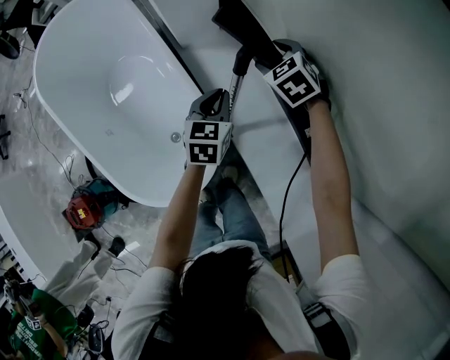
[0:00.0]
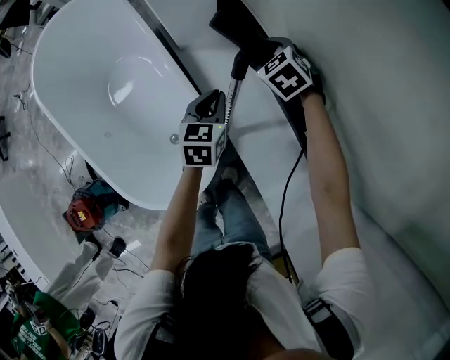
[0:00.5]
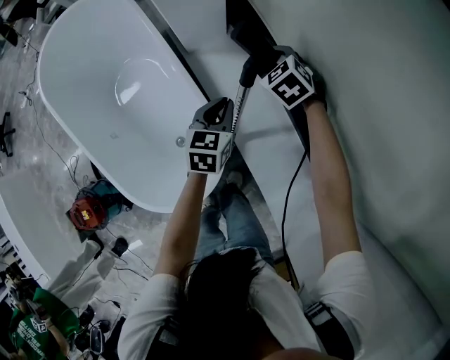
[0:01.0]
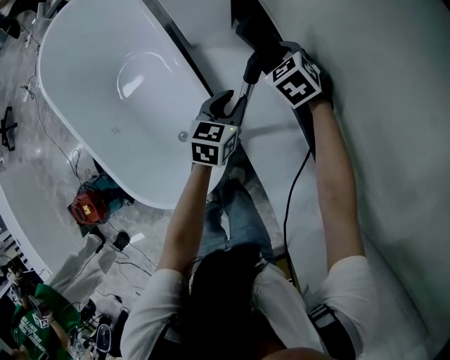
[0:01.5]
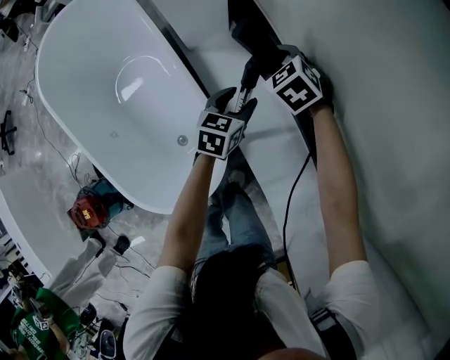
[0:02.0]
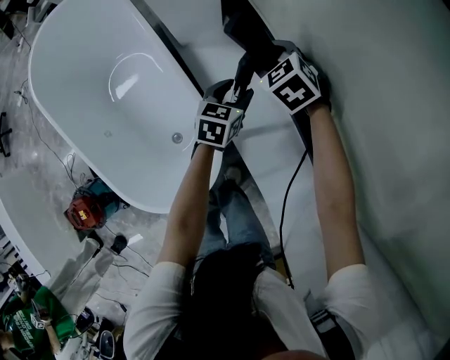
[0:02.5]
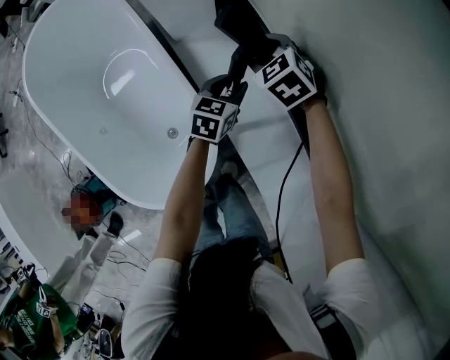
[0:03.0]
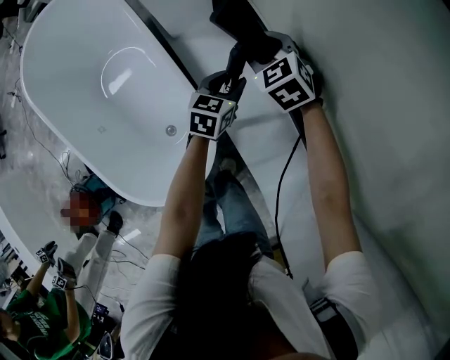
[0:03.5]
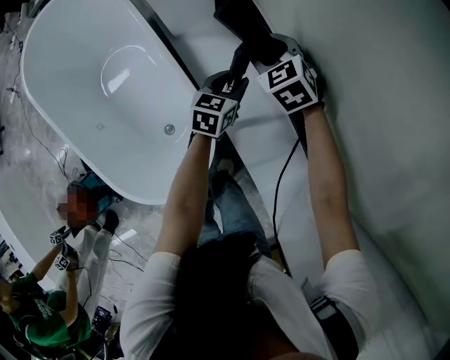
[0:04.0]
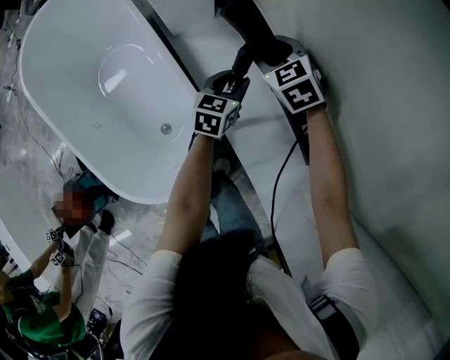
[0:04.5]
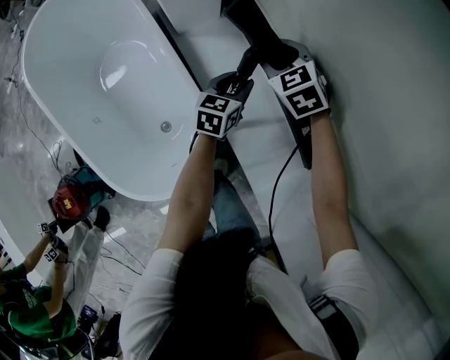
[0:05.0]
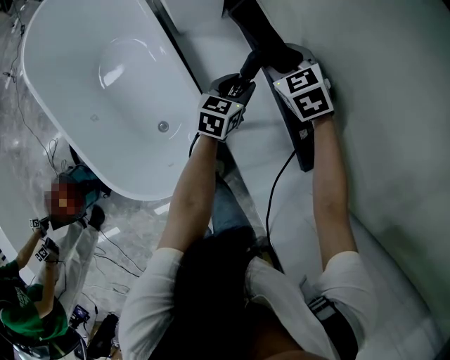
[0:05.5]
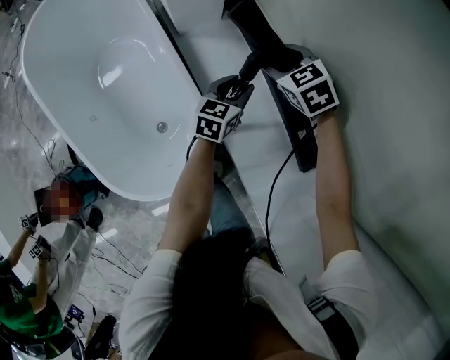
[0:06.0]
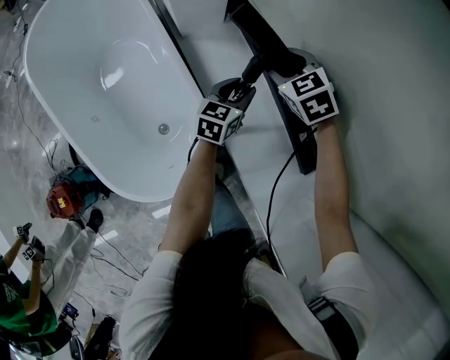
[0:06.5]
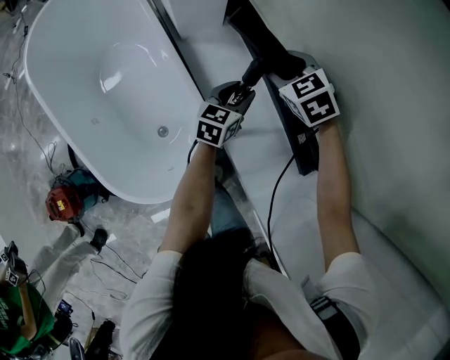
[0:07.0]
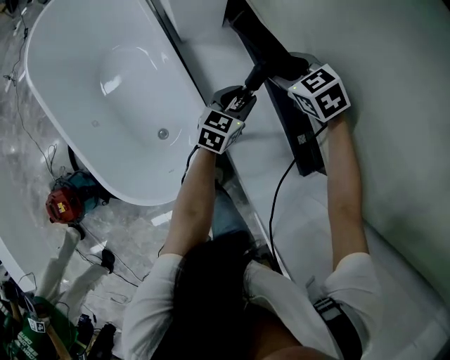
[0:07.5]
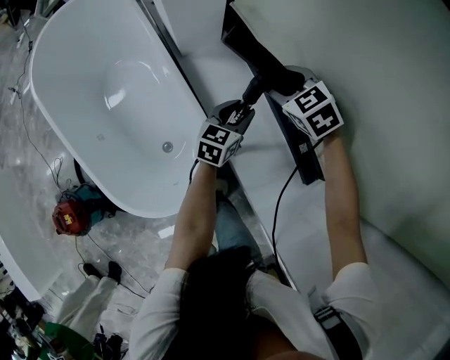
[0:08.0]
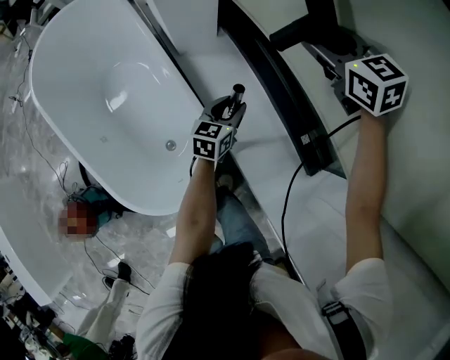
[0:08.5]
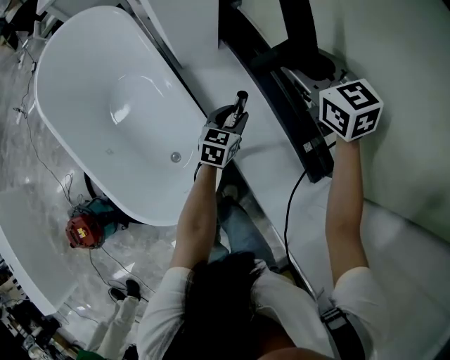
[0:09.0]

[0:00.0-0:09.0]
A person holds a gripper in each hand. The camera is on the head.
0:00.0 to 0:02.0: The right gripper shifts by approximately 5 cm; the left gripper goes about 5 cm downward, and opens up.
0:02.0 to 0:07.0: There are only small adjustments of the grippers.
0:07.0 to 0:09.0: The right gripper heads upward, covering approximately 15 cm, and swivels some 30 degrees.

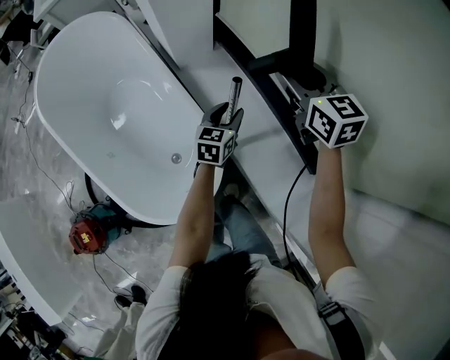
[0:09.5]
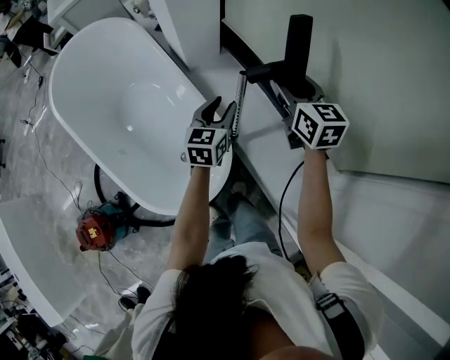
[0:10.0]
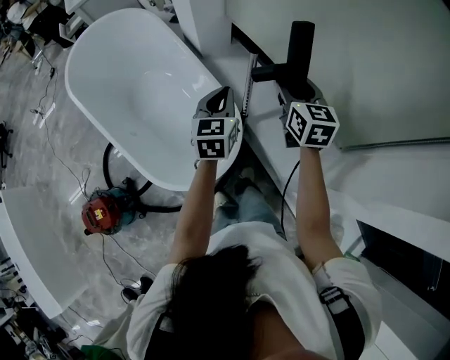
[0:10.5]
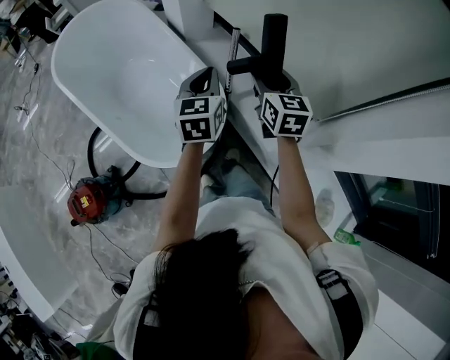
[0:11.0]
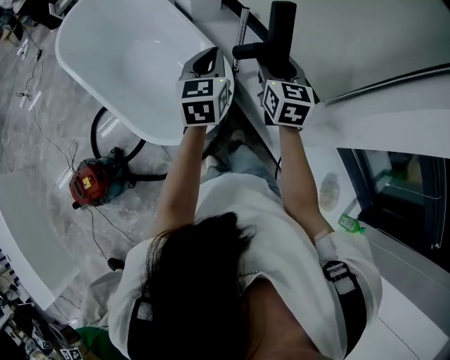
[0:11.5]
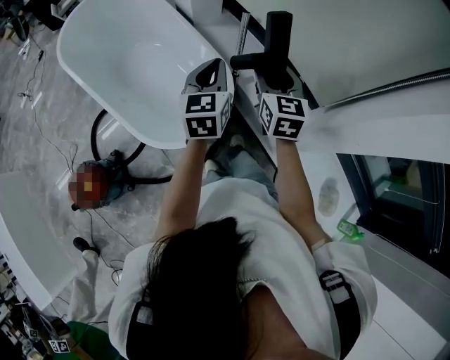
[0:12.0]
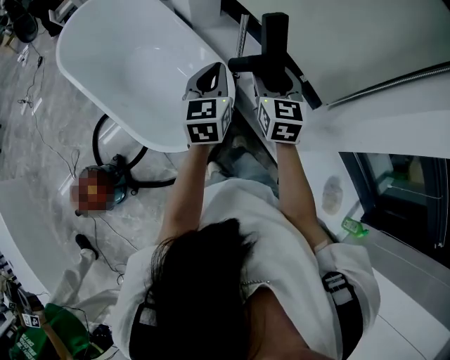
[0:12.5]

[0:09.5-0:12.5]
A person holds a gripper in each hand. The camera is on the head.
0:09.5 to 0:11.0: The left gripper travels backward, upward and to the left by some 35 cm, and closes its fingers, while the right gripper heads backward, covering about 30 cm.
0:11.0 to 0:12.5: Both grippers travel together backward, about 5 cm.

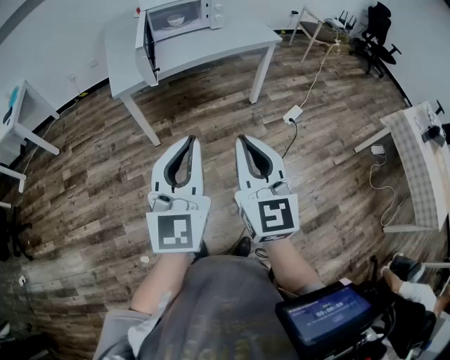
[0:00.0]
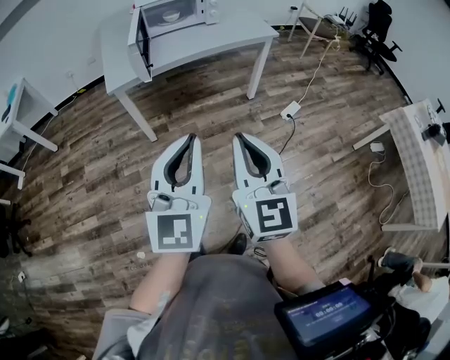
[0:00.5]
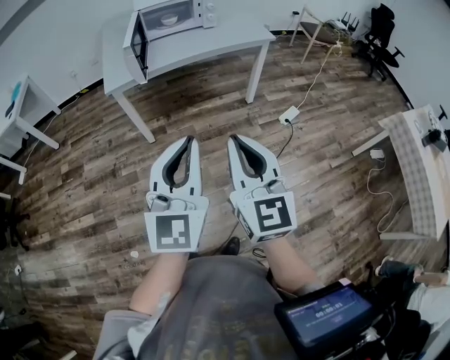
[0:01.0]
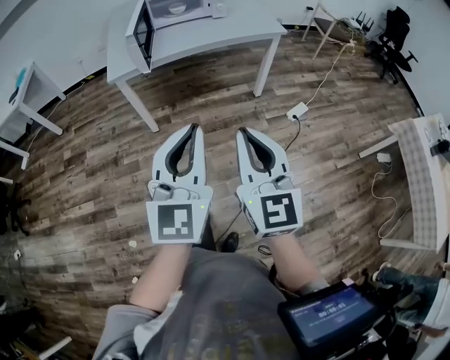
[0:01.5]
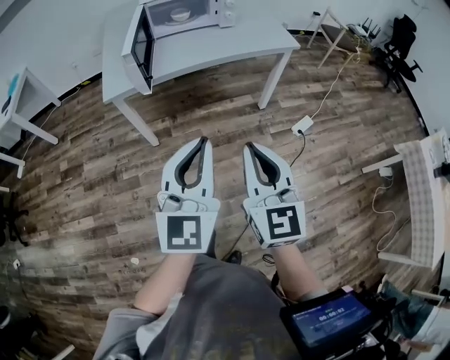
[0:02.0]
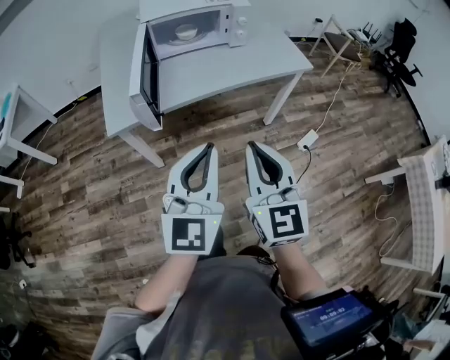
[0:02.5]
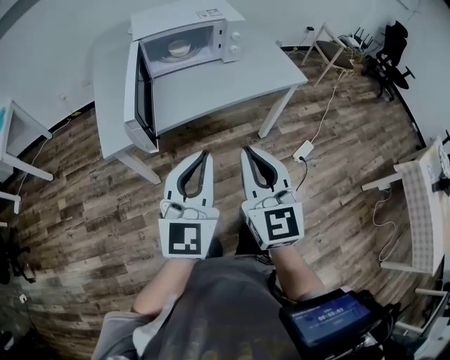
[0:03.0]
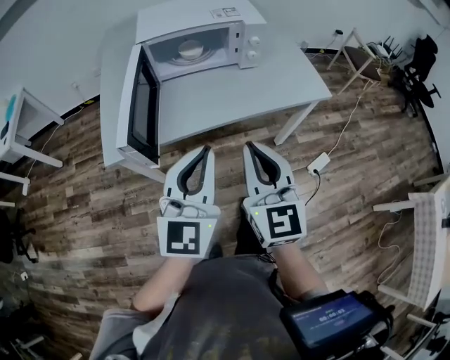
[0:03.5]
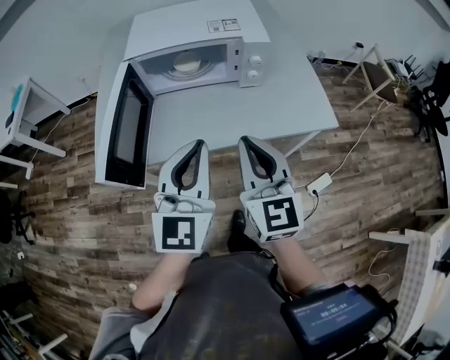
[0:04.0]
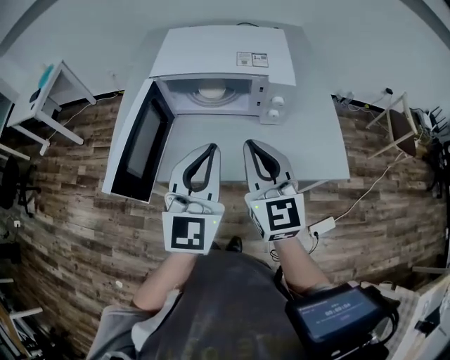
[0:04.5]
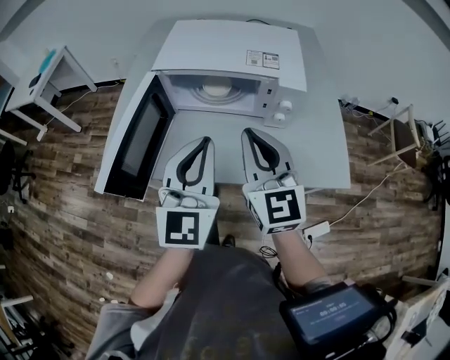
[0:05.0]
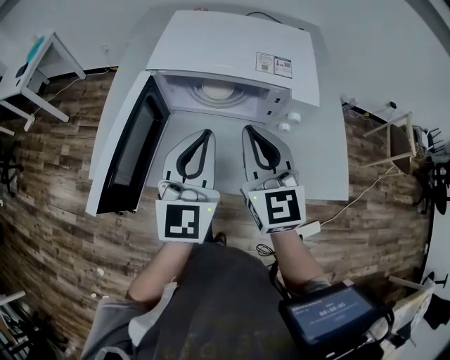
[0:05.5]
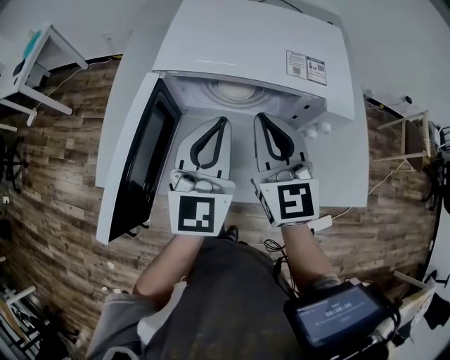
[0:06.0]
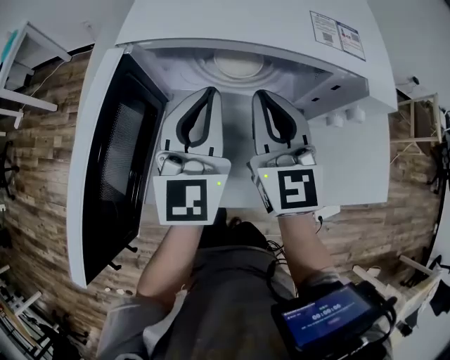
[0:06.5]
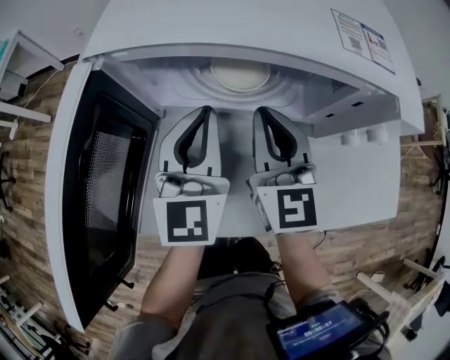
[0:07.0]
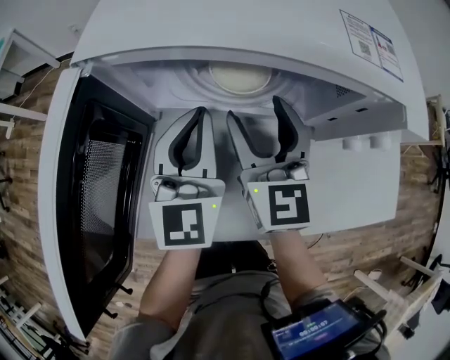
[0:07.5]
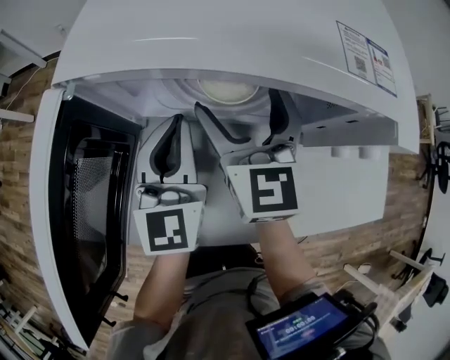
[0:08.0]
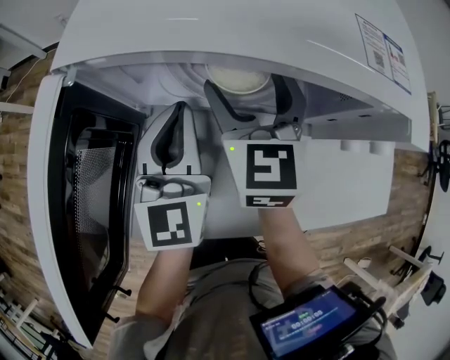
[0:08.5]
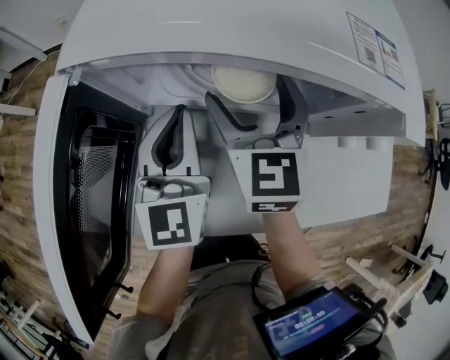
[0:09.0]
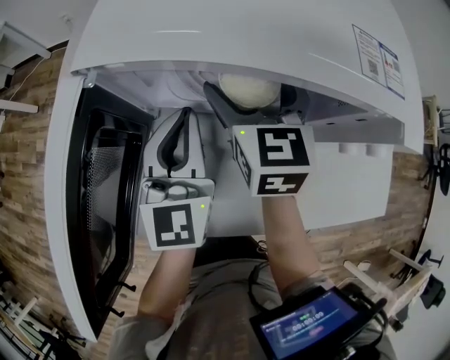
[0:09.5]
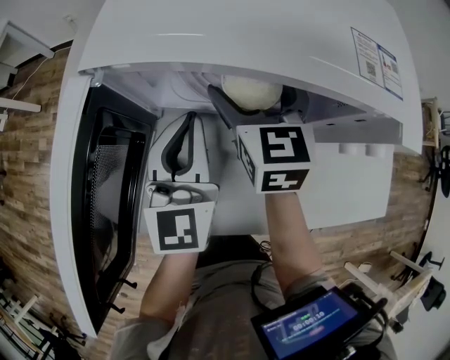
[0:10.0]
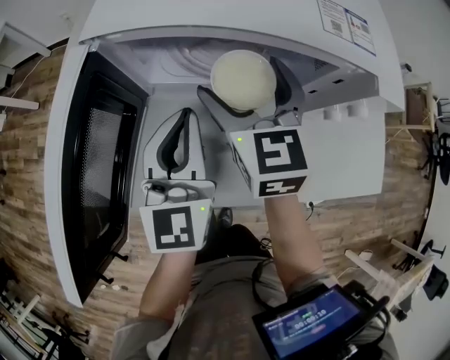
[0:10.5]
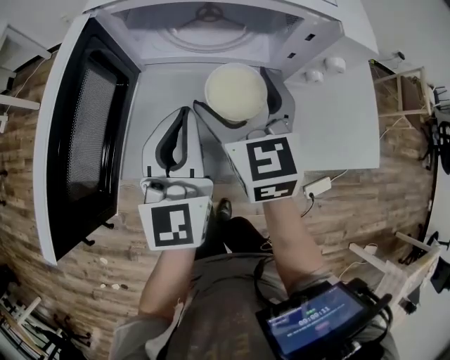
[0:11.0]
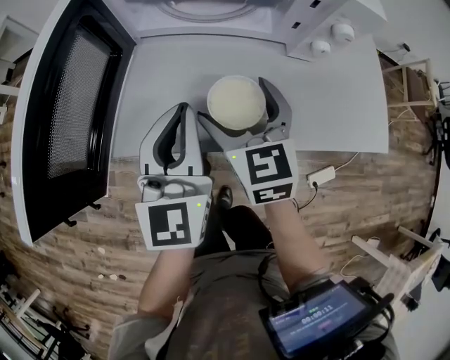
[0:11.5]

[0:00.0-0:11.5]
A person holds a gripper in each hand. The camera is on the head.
0:00.0 to 0:02.0: Both grippers travel together forward and to the right, approximately 15 cm.
0:02.0 to 0:04.0: The grippers both shift forward by some 40 cm.
0:04.0 to 0:06.0: Both grippers move forward, about 25 cm.
0:06.0 to 0:07.5: Both grippers move downward and forward, roughly 15 cm. The right gripper opens up.
0:07.5 to 0:09.5: The right gripper is displaced forward by roughly 5 cm, and opens.
0:09.5 to 0:11.5: Both grippers travel together backward, about 20 cm.

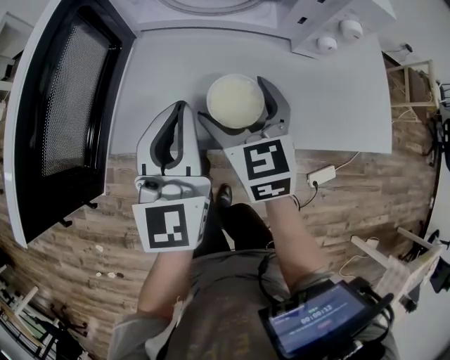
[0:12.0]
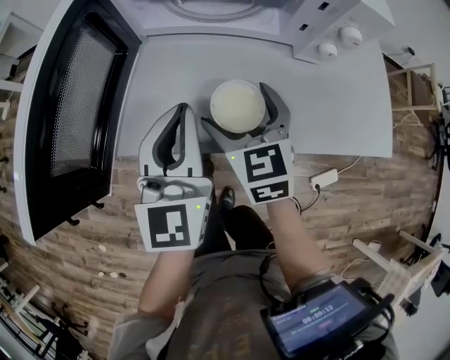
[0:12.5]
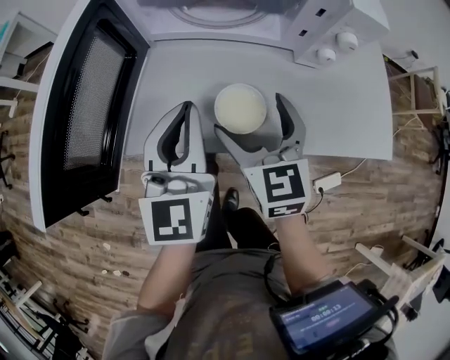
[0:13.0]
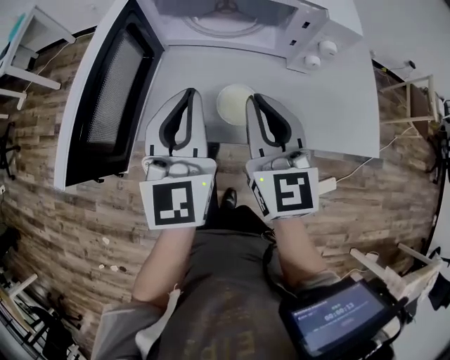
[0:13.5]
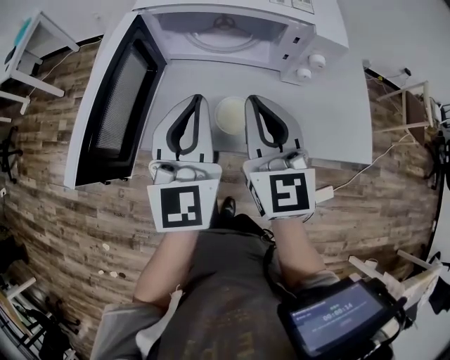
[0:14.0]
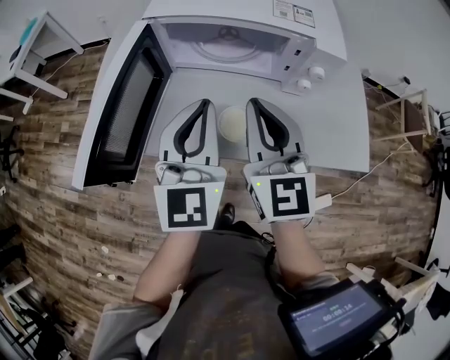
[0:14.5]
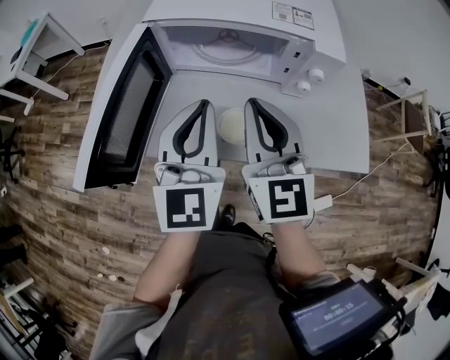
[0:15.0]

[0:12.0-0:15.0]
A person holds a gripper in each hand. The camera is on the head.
0:12.0 to 0:13.5: The right gripper moves upward, approximately 15 cm, swivels some 20 degrees, and closes; the left gripper moves upward, roughly 10 cm.
0:13.5 to 0:15.0: The right gripper moves upward, roughly 5 cm.
